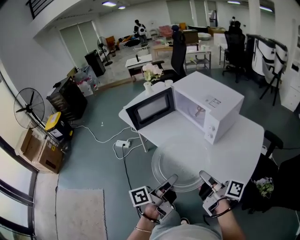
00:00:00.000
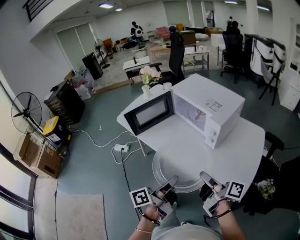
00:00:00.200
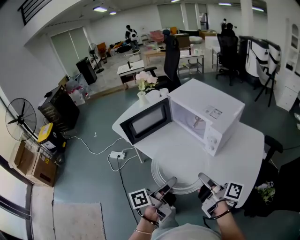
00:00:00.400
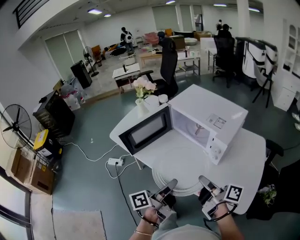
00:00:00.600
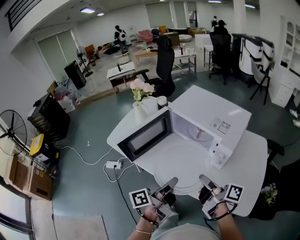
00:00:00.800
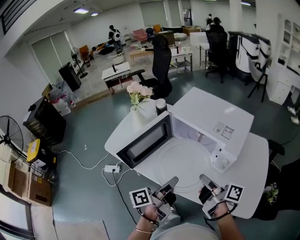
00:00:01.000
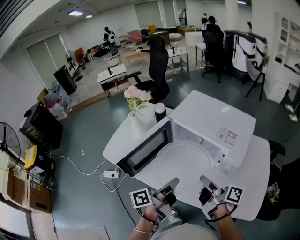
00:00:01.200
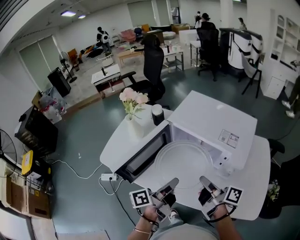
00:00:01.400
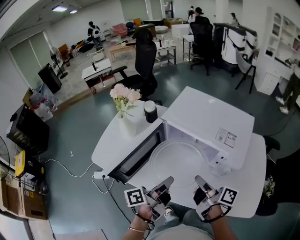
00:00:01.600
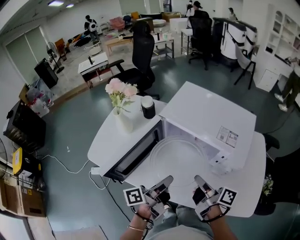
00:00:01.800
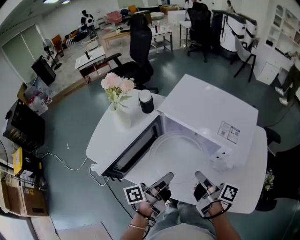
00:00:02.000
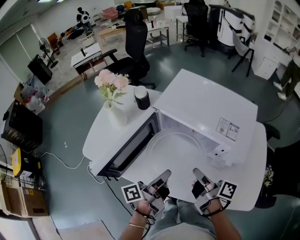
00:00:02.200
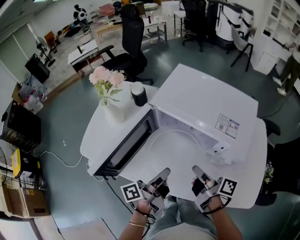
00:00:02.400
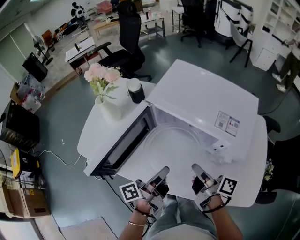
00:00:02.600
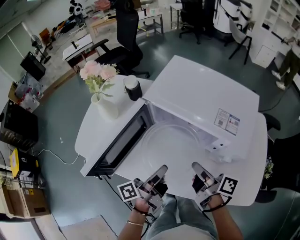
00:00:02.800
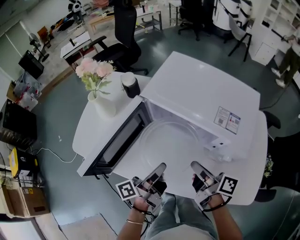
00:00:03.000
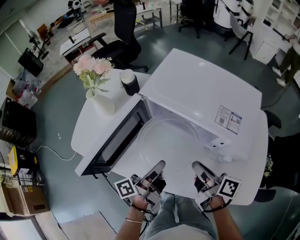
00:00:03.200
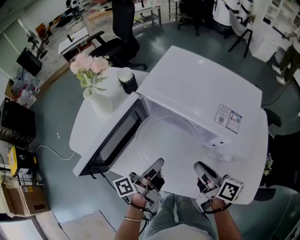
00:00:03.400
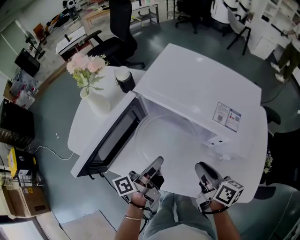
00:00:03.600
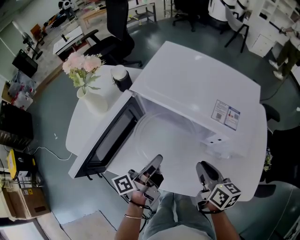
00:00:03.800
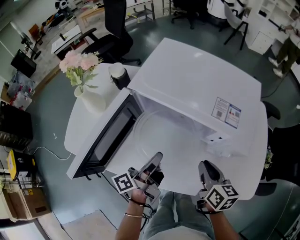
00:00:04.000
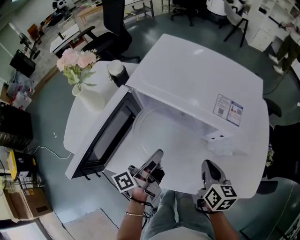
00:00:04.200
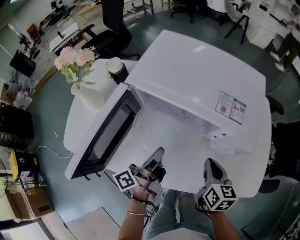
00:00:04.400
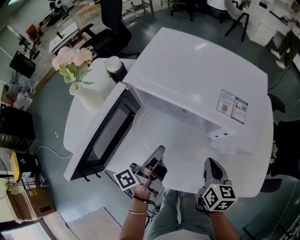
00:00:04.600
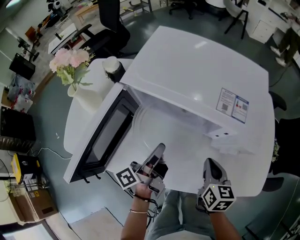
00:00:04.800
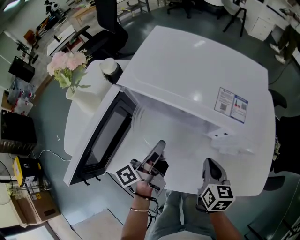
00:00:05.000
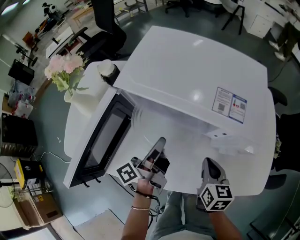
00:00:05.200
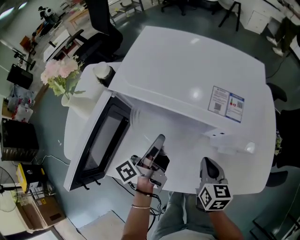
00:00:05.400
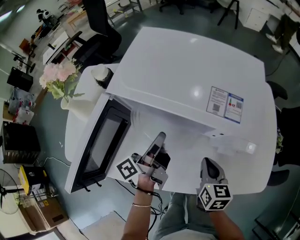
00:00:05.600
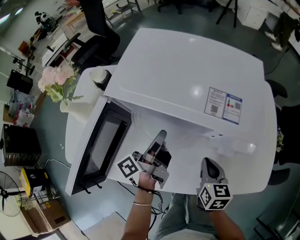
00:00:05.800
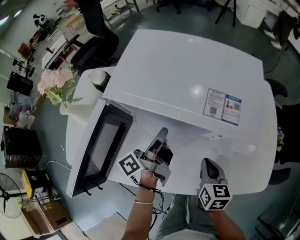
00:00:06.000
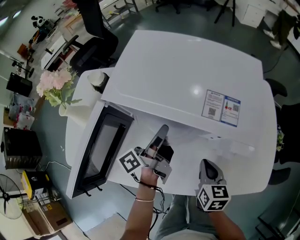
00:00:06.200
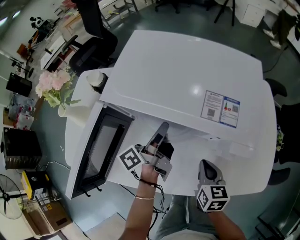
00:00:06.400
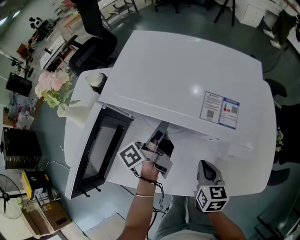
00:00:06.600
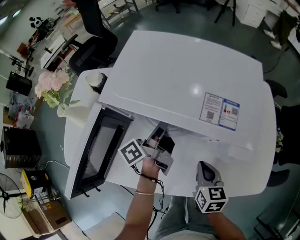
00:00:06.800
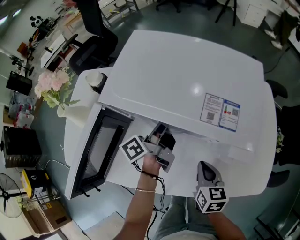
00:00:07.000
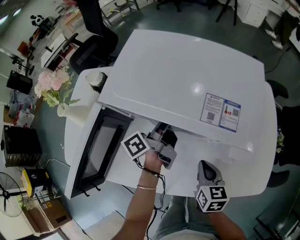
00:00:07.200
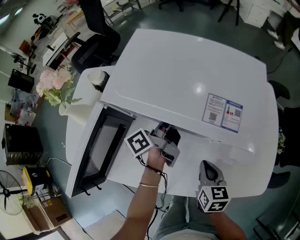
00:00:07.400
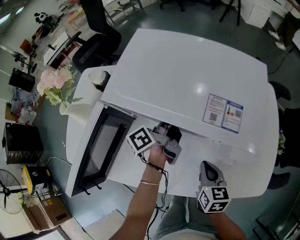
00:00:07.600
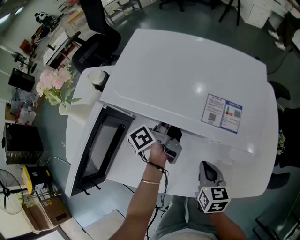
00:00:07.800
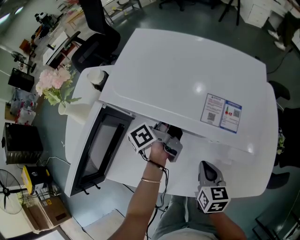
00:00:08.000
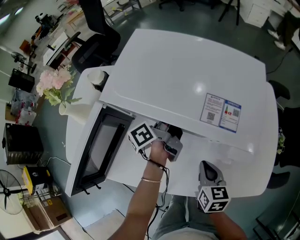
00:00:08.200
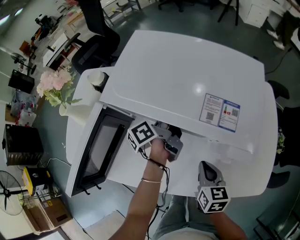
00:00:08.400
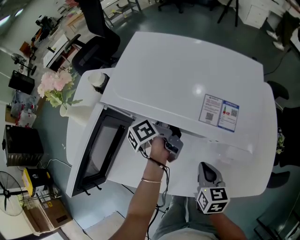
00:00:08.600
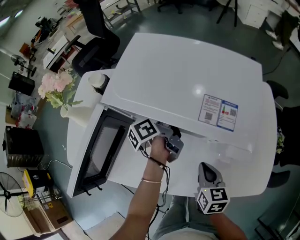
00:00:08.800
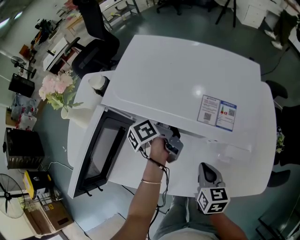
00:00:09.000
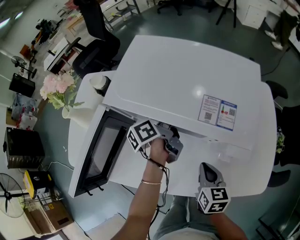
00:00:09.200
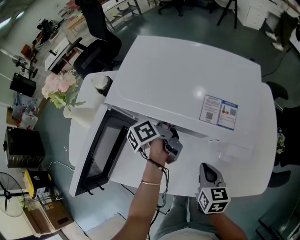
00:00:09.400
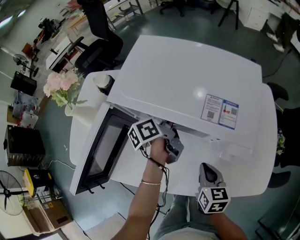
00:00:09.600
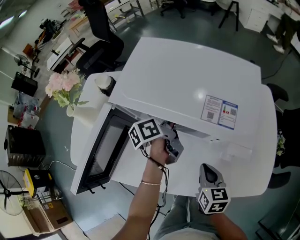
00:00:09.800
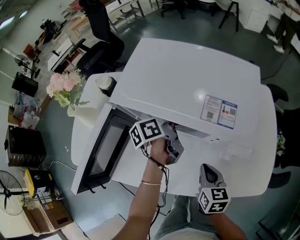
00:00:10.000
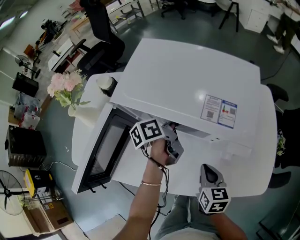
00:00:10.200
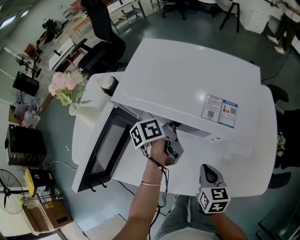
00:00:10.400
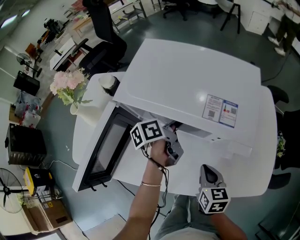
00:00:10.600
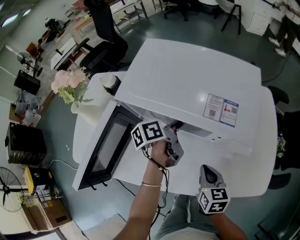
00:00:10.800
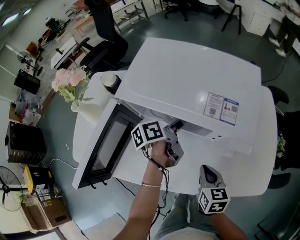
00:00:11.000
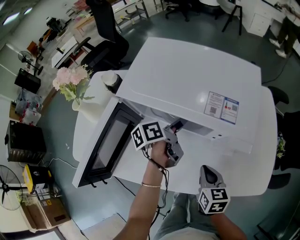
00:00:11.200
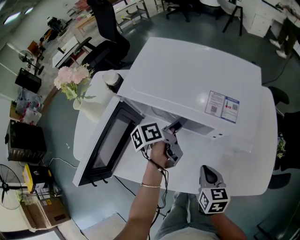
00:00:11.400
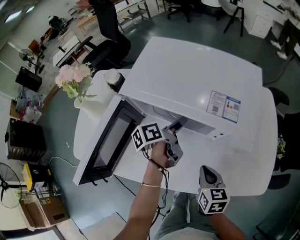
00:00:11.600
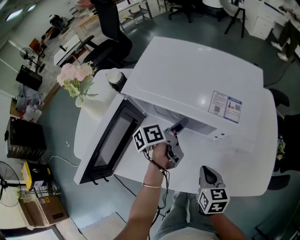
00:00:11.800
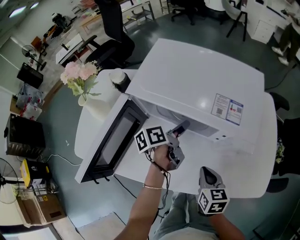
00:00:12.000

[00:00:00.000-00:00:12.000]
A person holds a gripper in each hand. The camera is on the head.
00:00:00.000 to 00:00:01.600: The right gripper changes place by some 30 cm, and changes its angle by some 20 degrees.
00:00:01.600 to 00:00:03.000: The right gripper moves approximately 5 cm.
00:00:03.000 to 00:00:04.400: The right gripper shifts by some 10 cm, and swivels some 50 degrees.

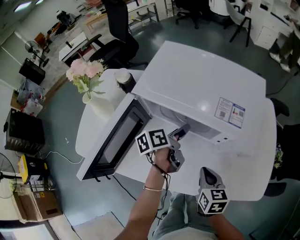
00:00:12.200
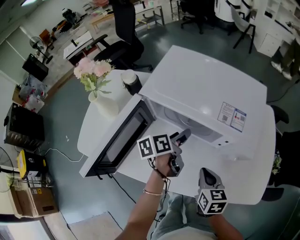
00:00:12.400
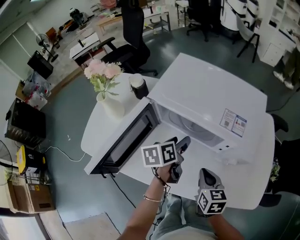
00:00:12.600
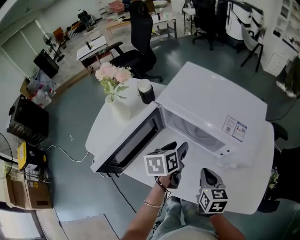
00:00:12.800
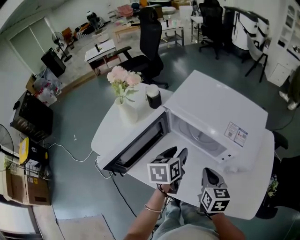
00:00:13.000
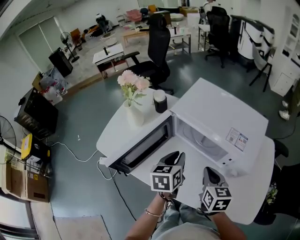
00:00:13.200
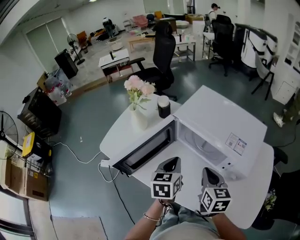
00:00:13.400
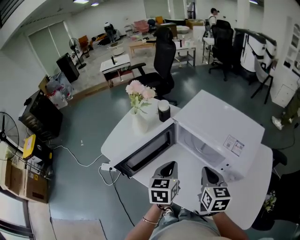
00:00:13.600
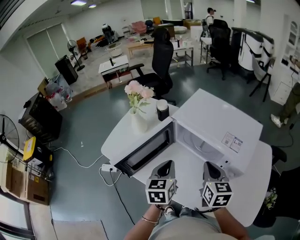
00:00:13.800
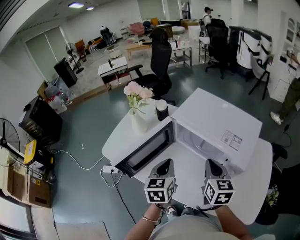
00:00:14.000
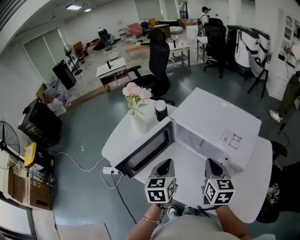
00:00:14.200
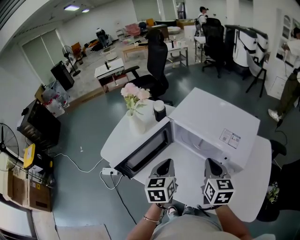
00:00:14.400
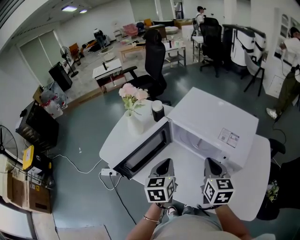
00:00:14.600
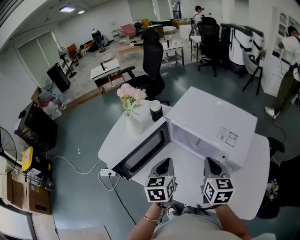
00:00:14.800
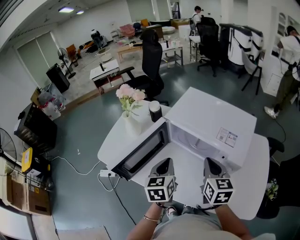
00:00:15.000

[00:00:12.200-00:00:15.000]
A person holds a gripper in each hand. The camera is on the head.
00:00:12.200 to 00:00:13.600: The right gripper goes about 15 cm upward, and turns by about 20 degrees.

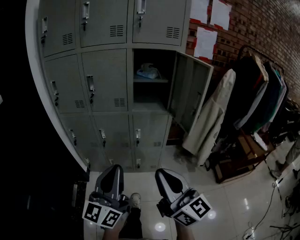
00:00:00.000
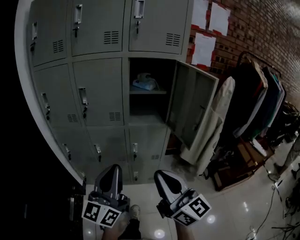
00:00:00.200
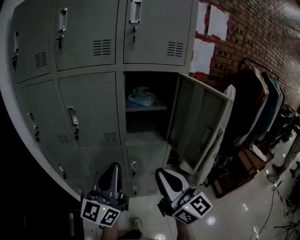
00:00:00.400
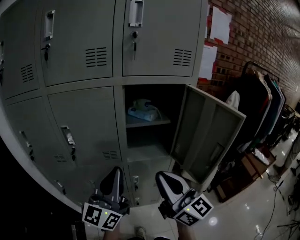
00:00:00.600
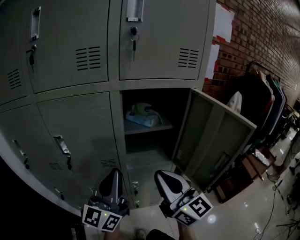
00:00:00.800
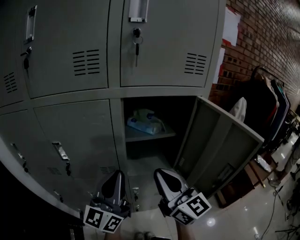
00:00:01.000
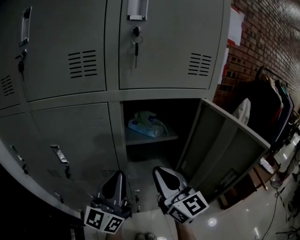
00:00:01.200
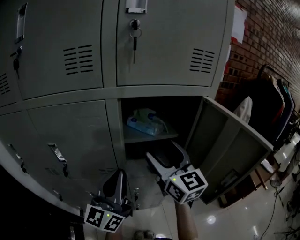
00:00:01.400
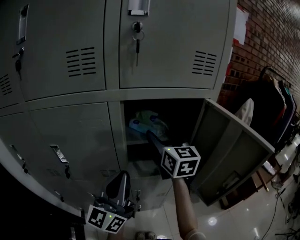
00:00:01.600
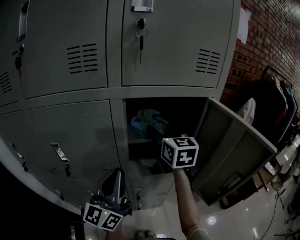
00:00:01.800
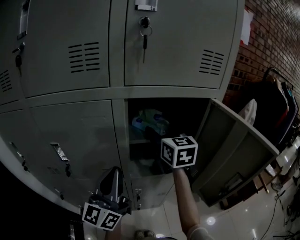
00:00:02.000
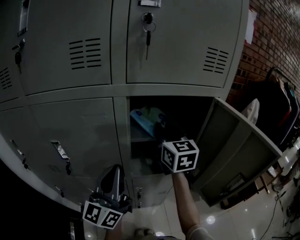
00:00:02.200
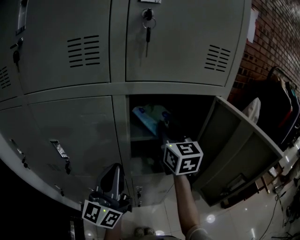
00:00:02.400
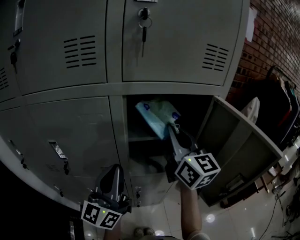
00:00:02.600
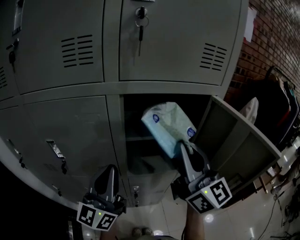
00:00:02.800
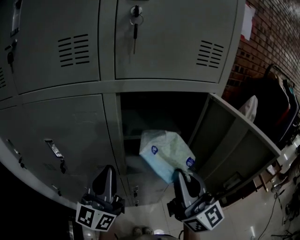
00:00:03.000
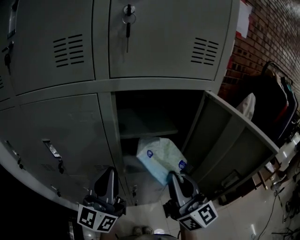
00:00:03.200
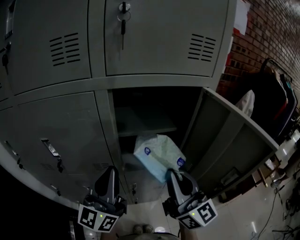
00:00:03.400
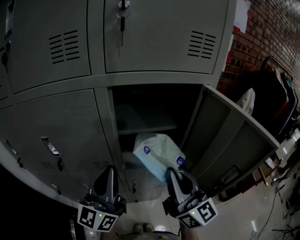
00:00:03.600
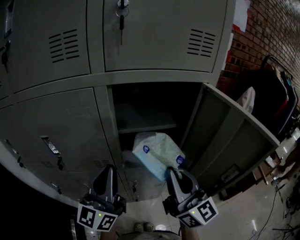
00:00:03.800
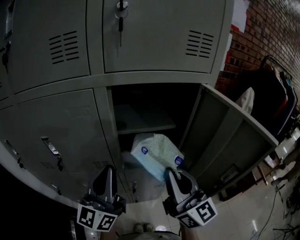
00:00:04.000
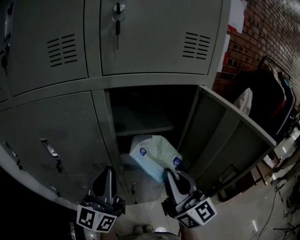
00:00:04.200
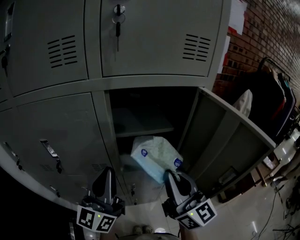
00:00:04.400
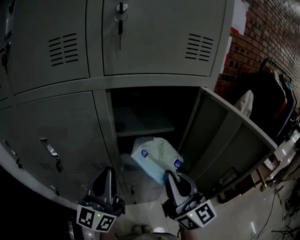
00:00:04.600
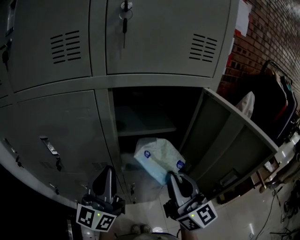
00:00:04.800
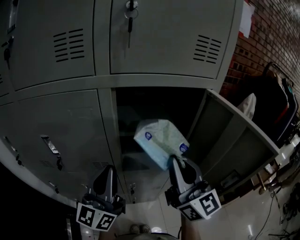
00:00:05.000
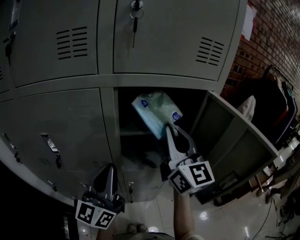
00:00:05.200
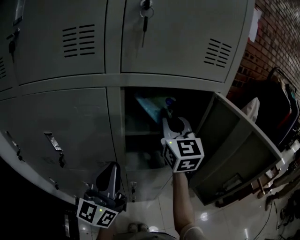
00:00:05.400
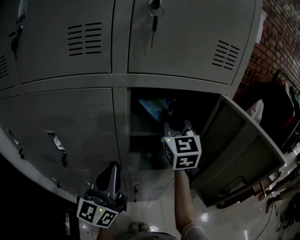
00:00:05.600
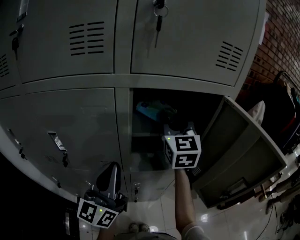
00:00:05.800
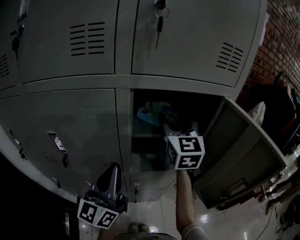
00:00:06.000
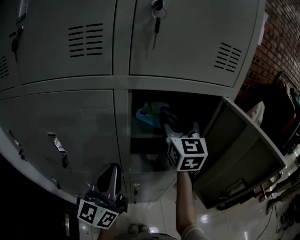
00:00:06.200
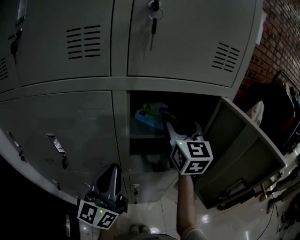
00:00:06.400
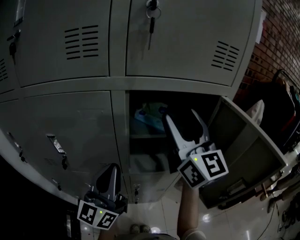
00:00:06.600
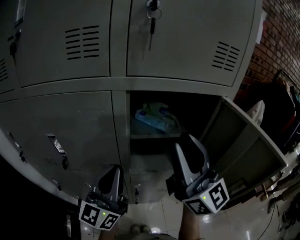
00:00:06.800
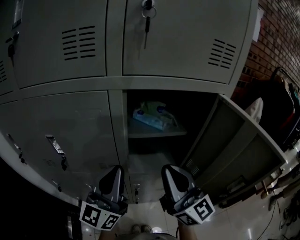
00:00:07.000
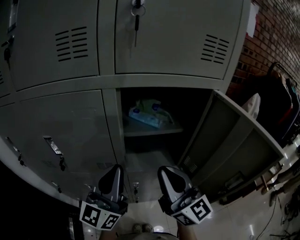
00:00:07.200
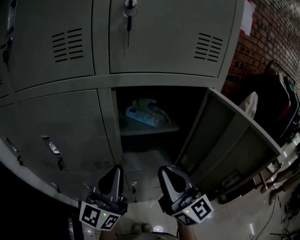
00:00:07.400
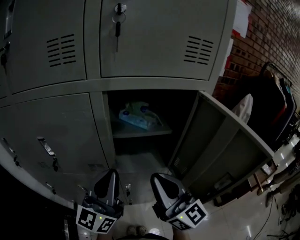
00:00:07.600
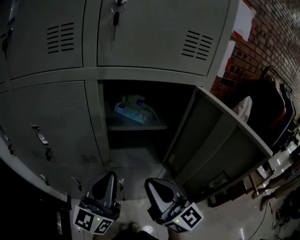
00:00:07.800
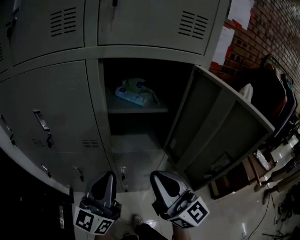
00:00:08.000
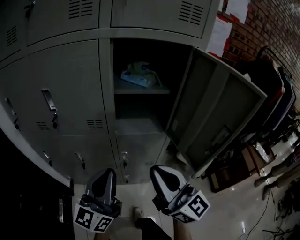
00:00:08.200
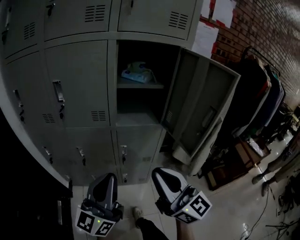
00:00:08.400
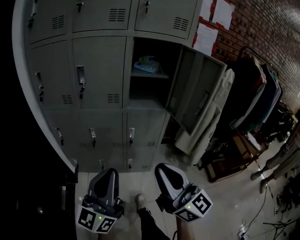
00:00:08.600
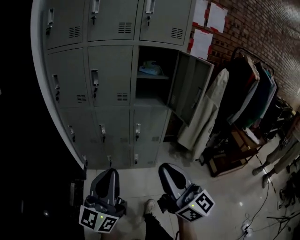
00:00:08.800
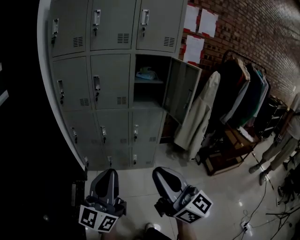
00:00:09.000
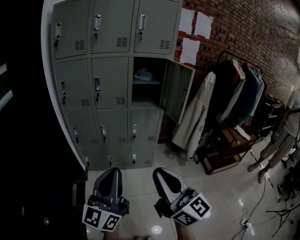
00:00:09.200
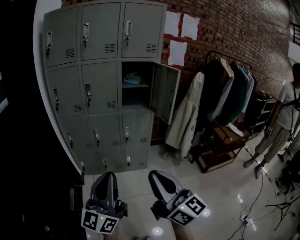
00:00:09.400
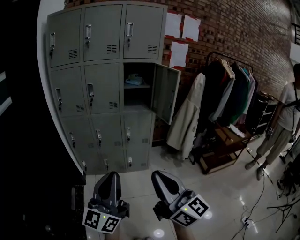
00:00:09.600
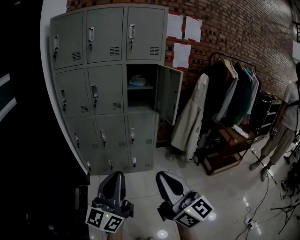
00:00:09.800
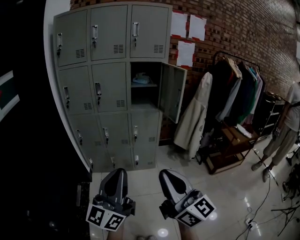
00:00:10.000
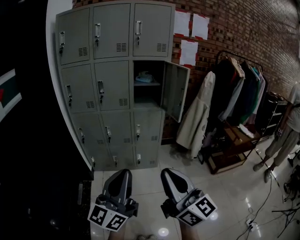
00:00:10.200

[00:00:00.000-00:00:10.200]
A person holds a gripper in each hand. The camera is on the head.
00:00:00.000 to 00:00:01.400: The two grippers travel together, forward, about 50 cm. The right gripper turns by approximately 20 degrees, and opens up.
00:00:01.400 to 00:00:03.000: The right gripper is displaced backward by some 10 cm, and closes.
00:00:03.000 to 00:00:04.400: The grippers make only small movements.
00:00:04.400 to 00:00:05.800: The right gripper moves forward, some 20 cm, and turns by roughly 30 degrees.
00:00:05.800 to 00:00:07.200: The right gripper heads backward, covering approximately 20 cm, changes its angle by approximately 40 degrees, and opens, then closes once more.
00:00:07.200 to 00:00:08.800: The pair of grippers is taken backward, approximately 50 cm.
00:00:08.800 to 00:00:10.200: Both grippers move backward, some 20 cm.
